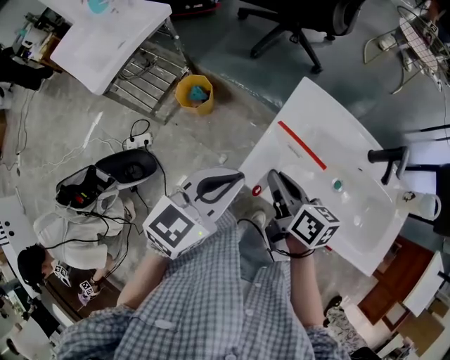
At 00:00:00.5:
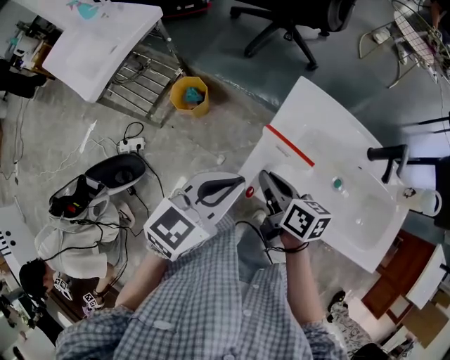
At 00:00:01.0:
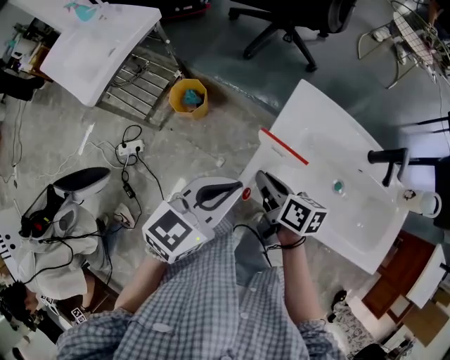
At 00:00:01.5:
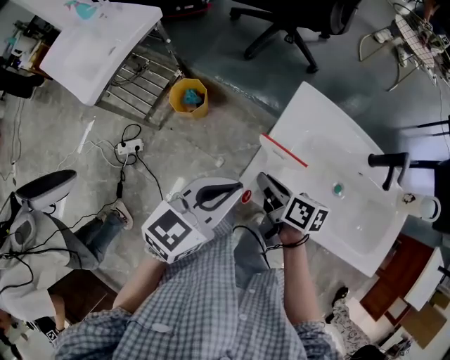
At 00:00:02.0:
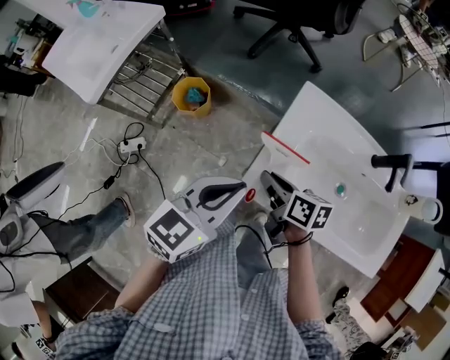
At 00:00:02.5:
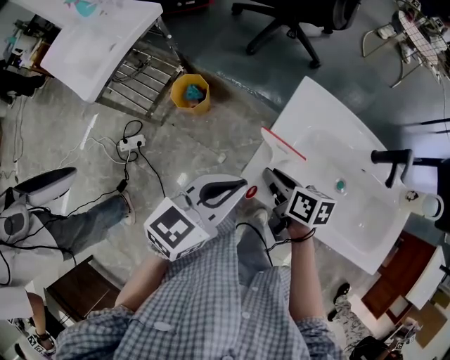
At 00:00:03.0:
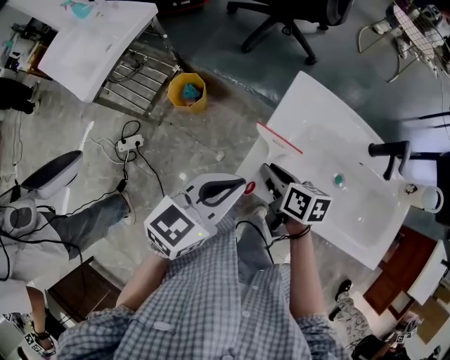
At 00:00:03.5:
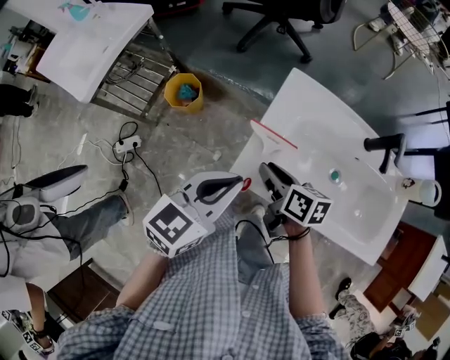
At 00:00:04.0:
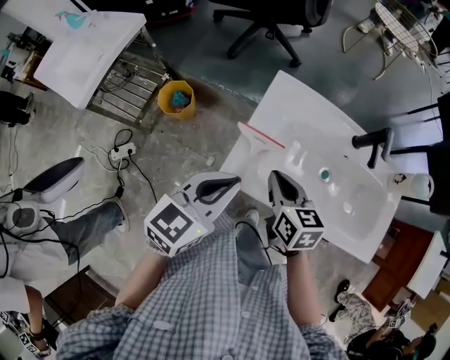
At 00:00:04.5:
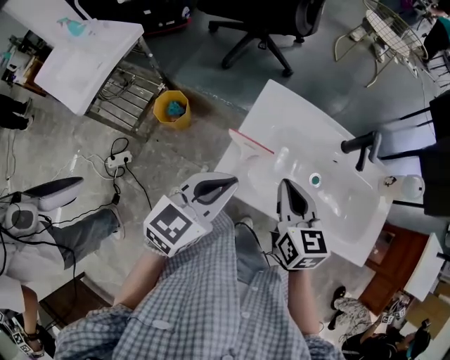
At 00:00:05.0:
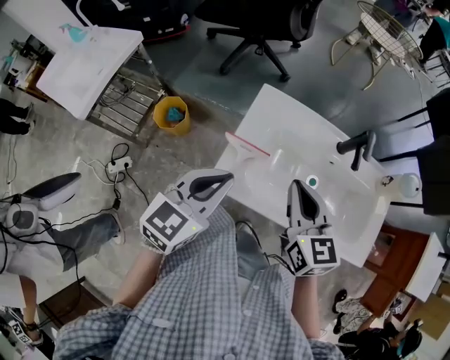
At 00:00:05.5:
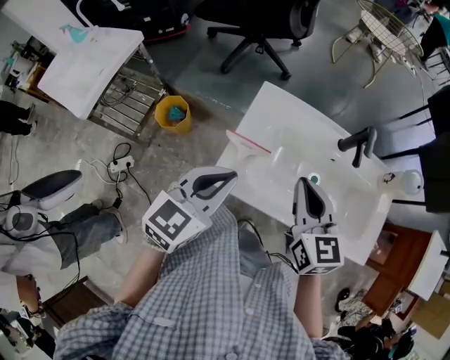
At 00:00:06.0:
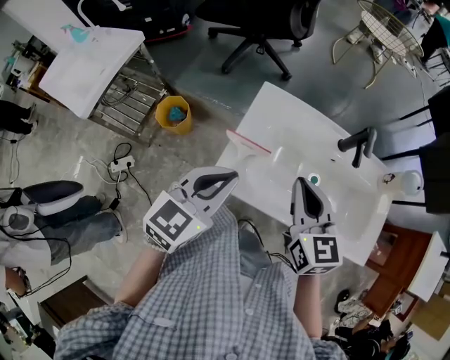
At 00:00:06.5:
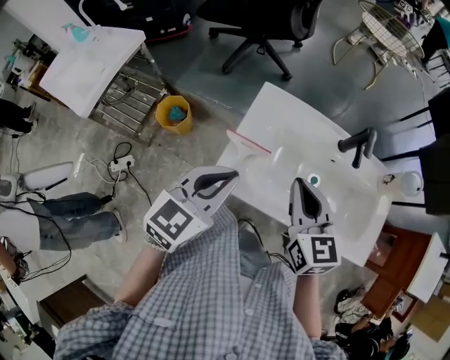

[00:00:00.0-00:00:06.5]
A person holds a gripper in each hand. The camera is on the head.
00:00:00.0 to 00:00:02.0: The right gripper is displaced downward by about 5 cm.
00:00:02.0 to 00:00:04.5: The right gripper goes approximately 15 cm upward and to the right, and turns by some 40 degrees, while the left gripper travels to the right by about 5 cm.
00:00:04.5 to 00:00:06.5: The right gripper changes place by approximately 5 cm.

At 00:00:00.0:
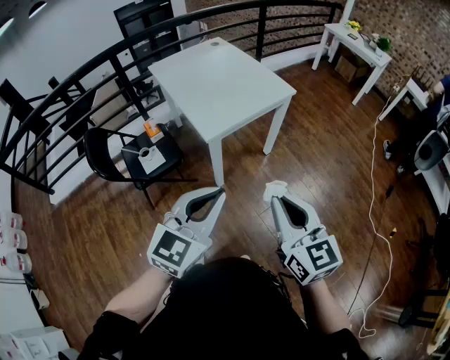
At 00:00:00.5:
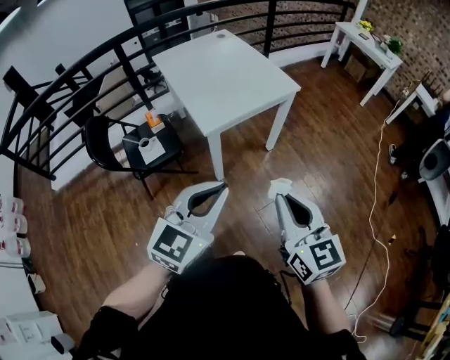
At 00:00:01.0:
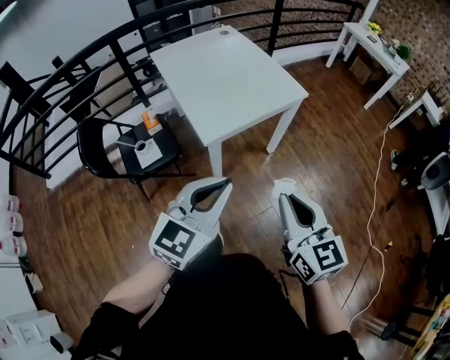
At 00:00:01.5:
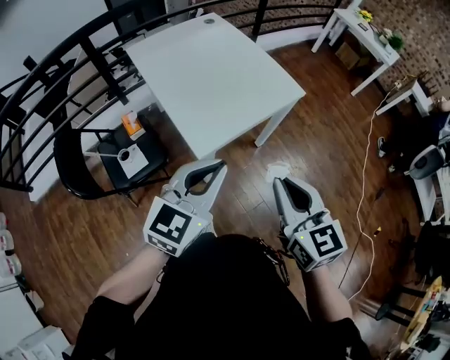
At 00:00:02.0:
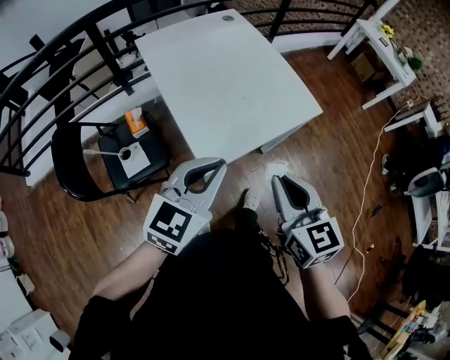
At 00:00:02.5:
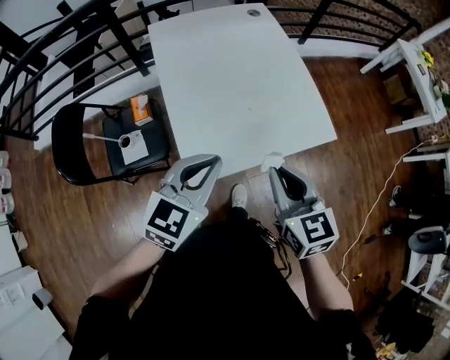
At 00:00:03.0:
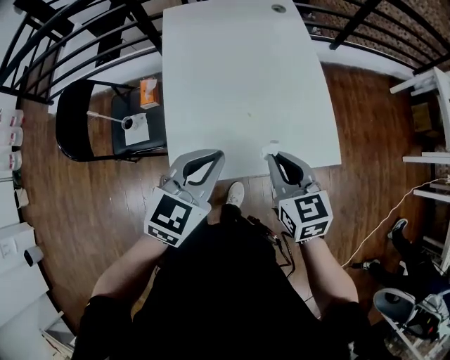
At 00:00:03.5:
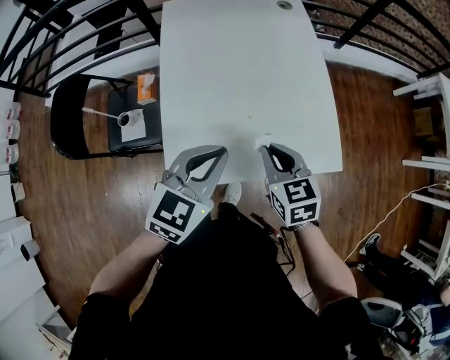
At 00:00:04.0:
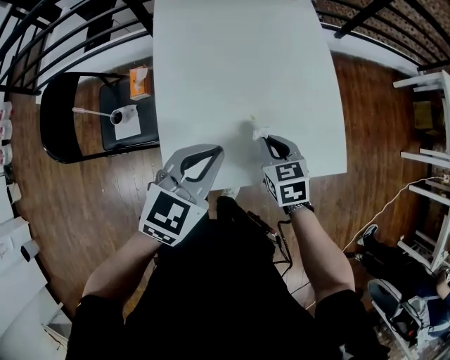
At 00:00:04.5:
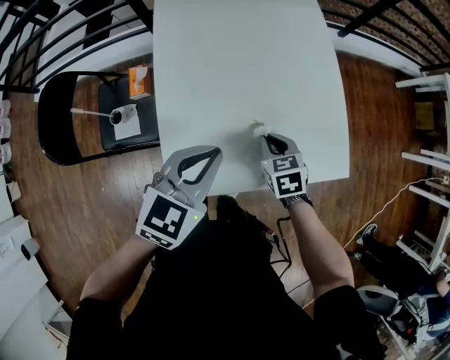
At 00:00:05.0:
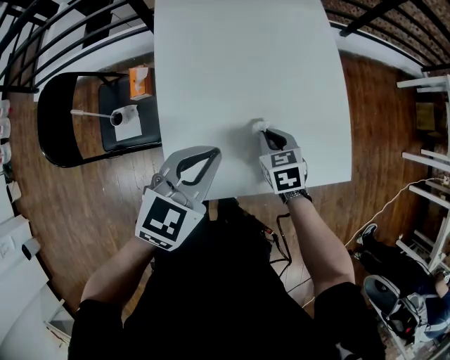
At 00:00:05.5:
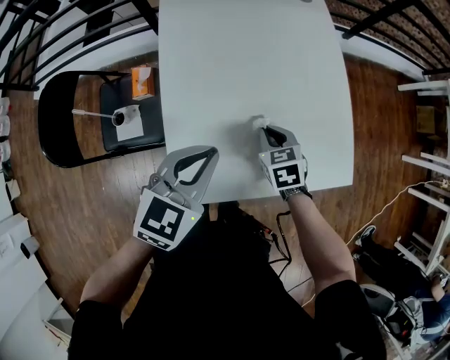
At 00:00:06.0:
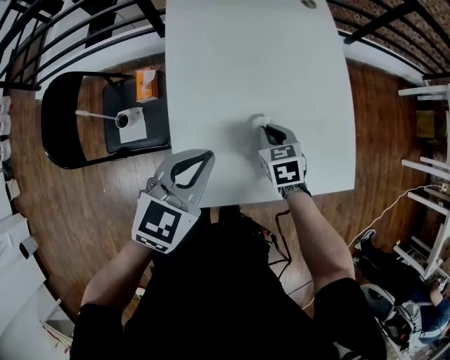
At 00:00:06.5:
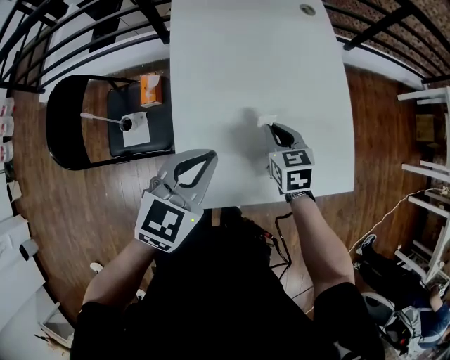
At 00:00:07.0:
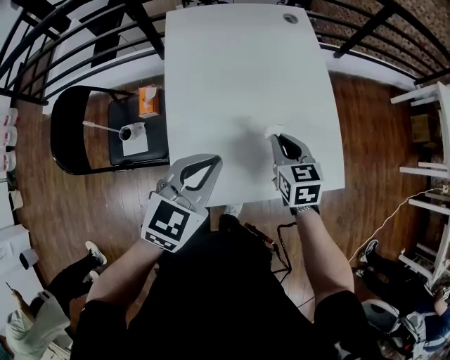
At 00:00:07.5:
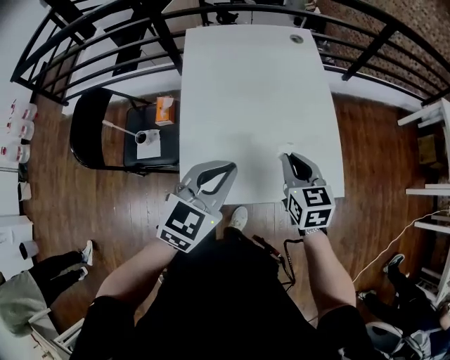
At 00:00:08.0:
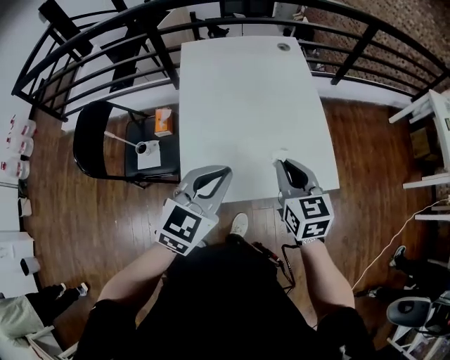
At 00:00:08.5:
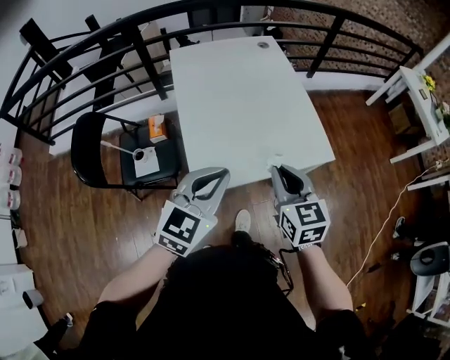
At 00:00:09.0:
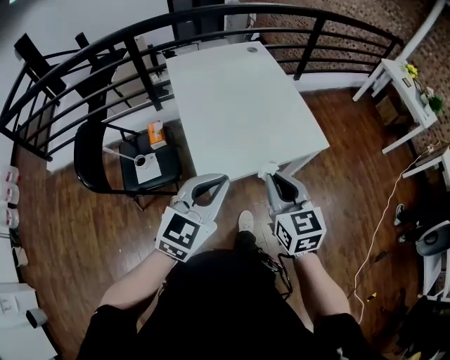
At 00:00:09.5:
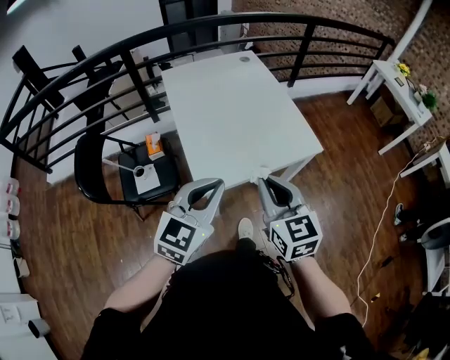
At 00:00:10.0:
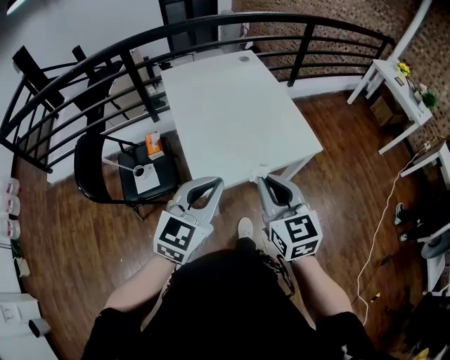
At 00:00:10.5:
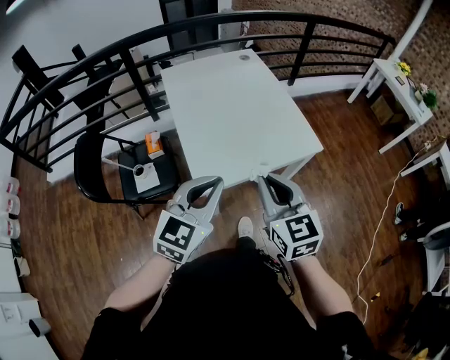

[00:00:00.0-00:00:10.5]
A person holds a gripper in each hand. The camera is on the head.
00:00:00.0 to 00:00:02.0: The two grippers go about 30 cm forward.
00:00:02.0 to 00:00:04.0: The right gripper ends up approximately 40 cm from where it was, and turns by some 40 degrees. Meanwhile the left gripper shifts by some 25 cm, and changes its angle by some 30 degrees.
00:00:04.0 to 00:00:06.5: The right gripper is displaced forward and to the left by roughly 10 cm. Meanwhile the left gripper goes roughly 5 cm to the left.
00:00:06.5 to 00:00:08.5: The right gripper travels backward and upward by some 30 cm, and swivels about 20 degrees, while the left gripper shifts approximately 20 cm backward and upward.
00:00:08.5 to 00:00:10.5: The right gripper goes about 10 cm backward and upward, while the left gripper shifts some 5 cm backward.

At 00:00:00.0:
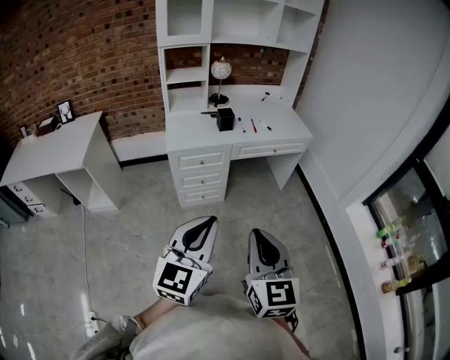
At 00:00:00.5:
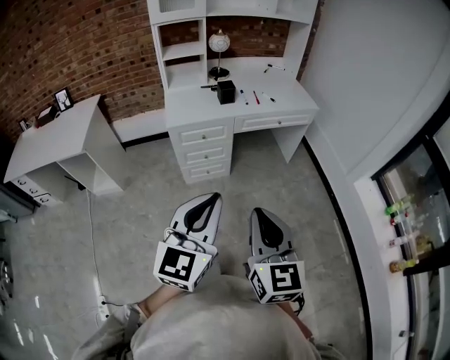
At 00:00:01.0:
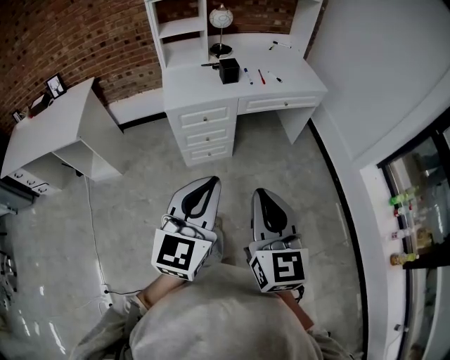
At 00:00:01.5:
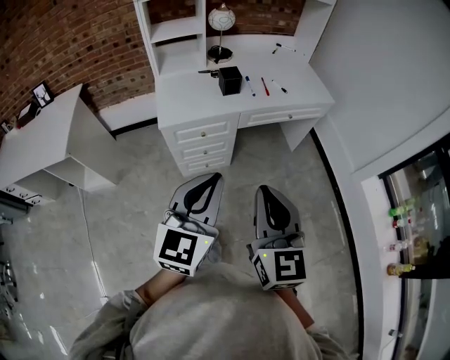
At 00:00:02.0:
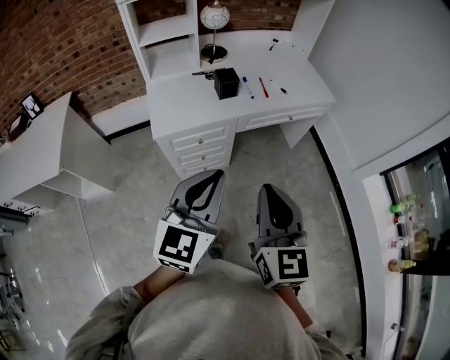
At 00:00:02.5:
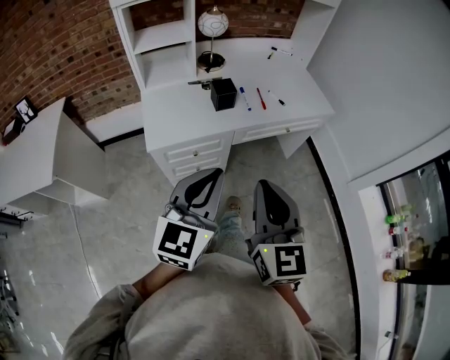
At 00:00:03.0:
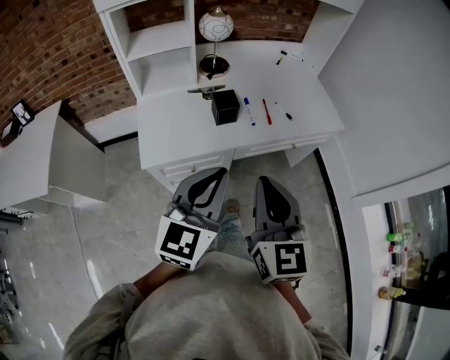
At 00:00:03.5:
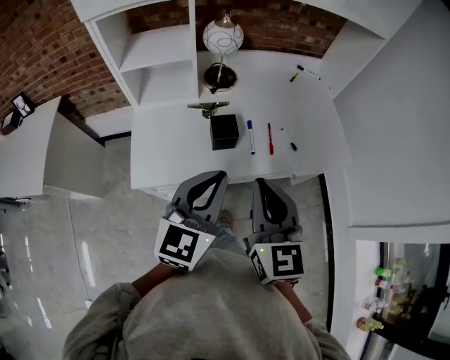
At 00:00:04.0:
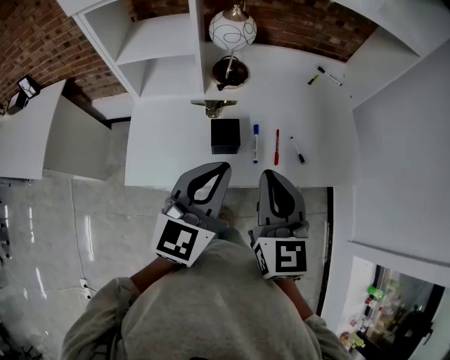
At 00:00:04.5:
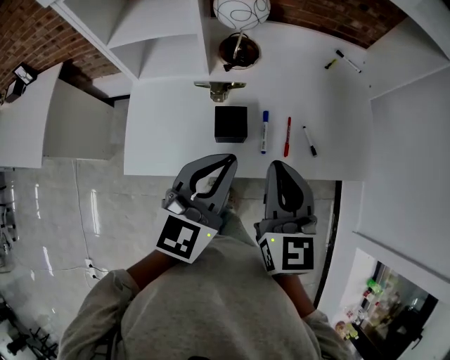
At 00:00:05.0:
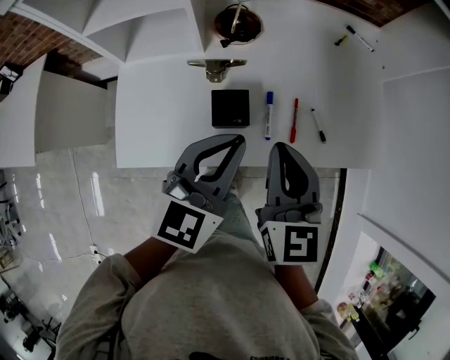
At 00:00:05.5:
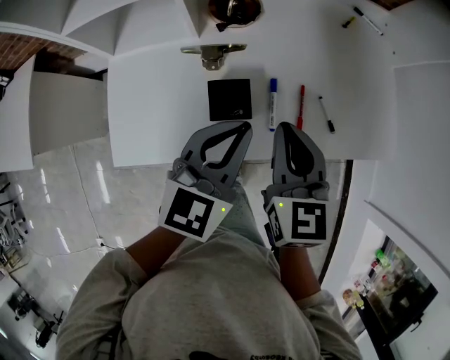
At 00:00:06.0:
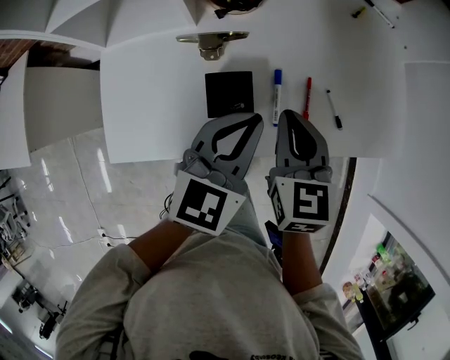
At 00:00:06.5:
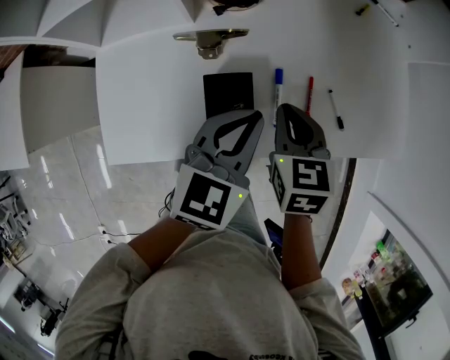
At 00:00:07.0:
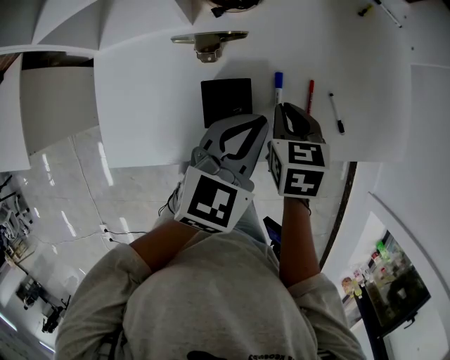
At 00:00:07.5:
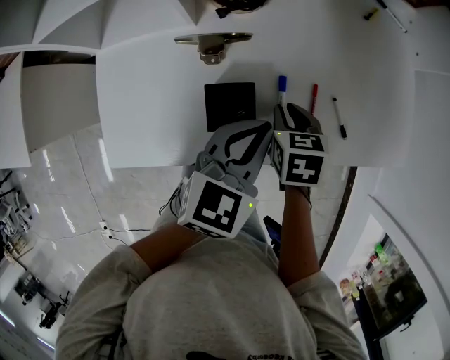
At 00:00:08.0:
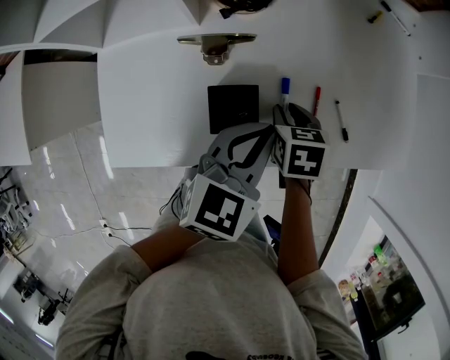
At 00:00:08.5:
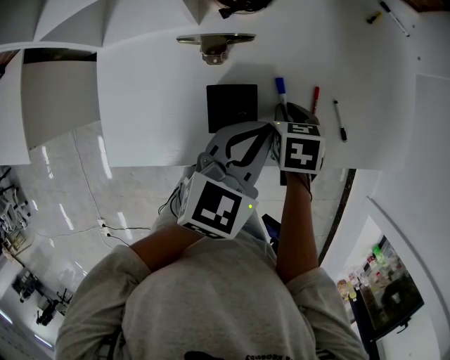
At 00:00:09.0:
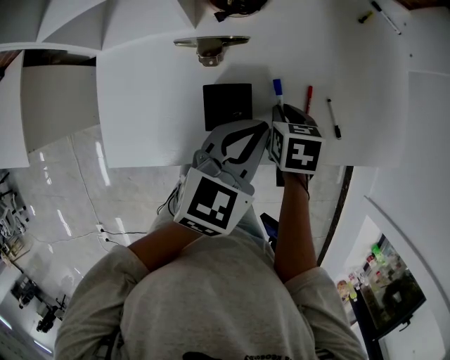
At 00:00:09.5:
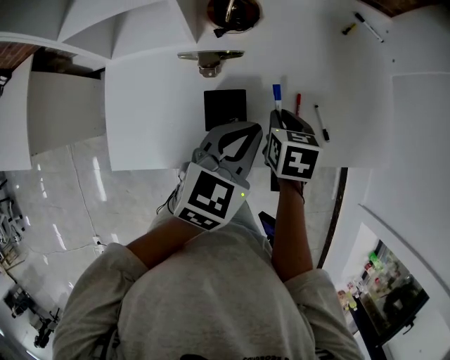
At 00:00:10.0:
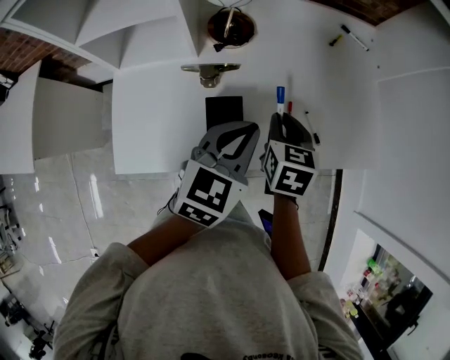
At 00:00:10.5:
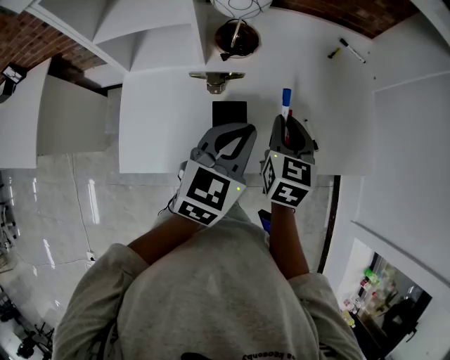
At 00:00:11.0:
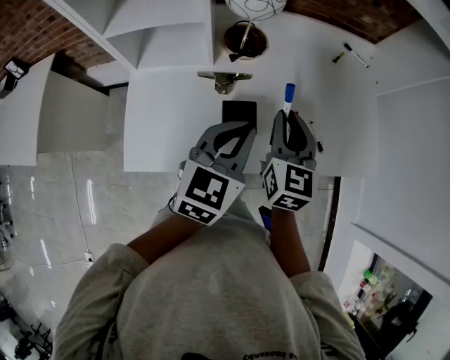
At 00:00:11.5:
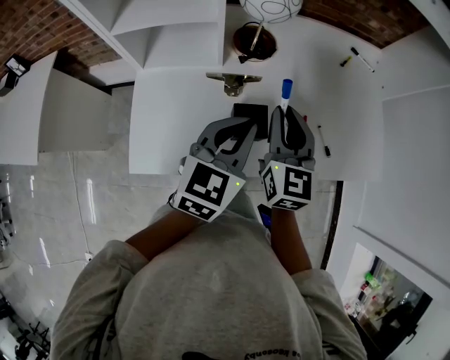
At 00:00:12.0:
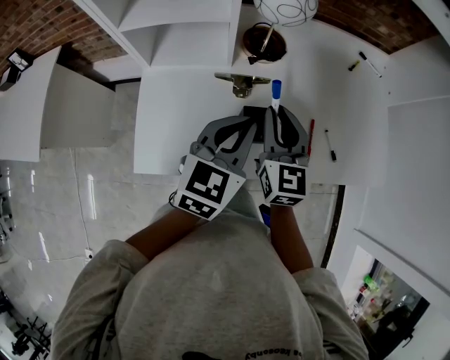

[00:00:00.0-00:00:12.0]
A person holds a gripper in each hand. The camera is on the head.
00:00:00.0 to 00:00:02.0: Both grippers travel together forward, about 30 cm.
00:00:02.0 to 00:00:04.0: Both grippers are carried forward, about 40 cm.
00:00:04.0 to 00:00:06.0: Both grippers move downward and forward, about 20 cm. The right gripper rotates about 20 degrees.
00:00:06.0 to 00:00:08.0: The right gripper goes about 15 cm downward, and swivels approximately 30 degrees.
00:00:08.0 to 00:00:10.0: The right gripper moves upward, about 15 cm, and turns by some 20 degrees. Meanwhile the left gripper moves upward, about 5 cm.
00:00:10.0 to 00:00:12.0: The left gripper heads to the left, covering about 10 cm, while the right gripper travels to the left and upward by some 15 cm, and tips its fingers upward by about 30 degrees.
